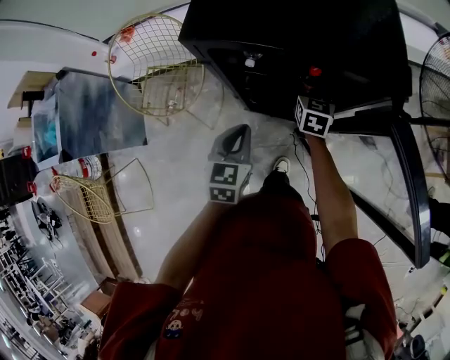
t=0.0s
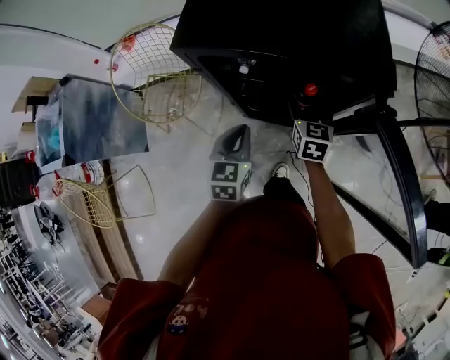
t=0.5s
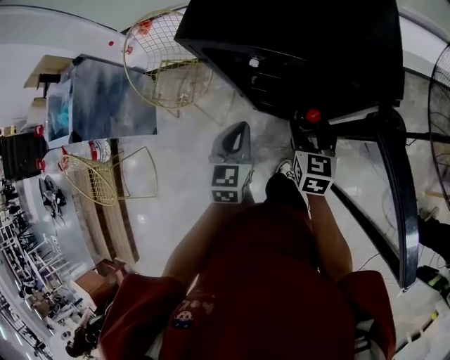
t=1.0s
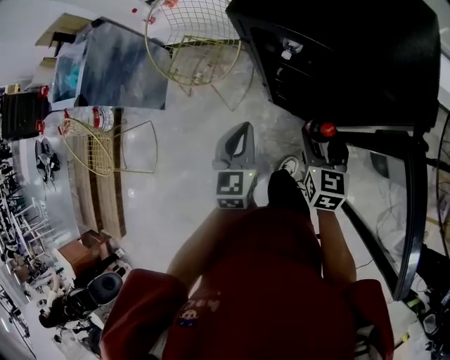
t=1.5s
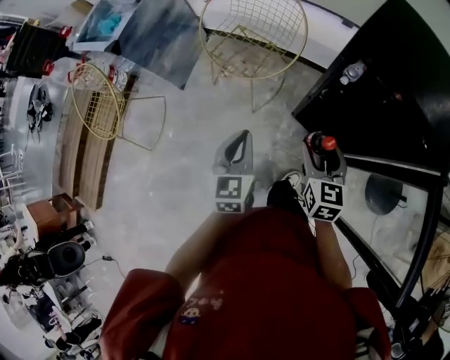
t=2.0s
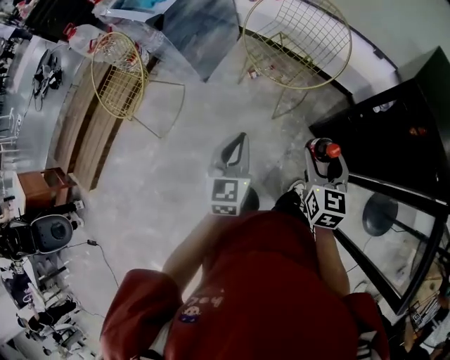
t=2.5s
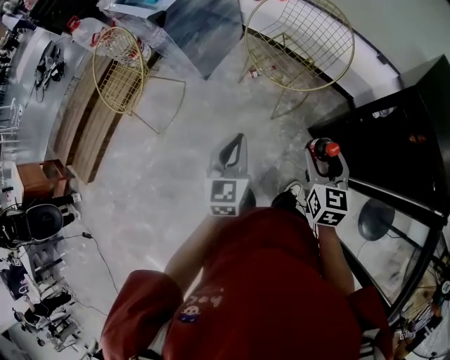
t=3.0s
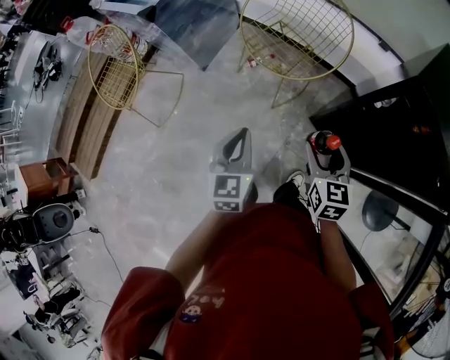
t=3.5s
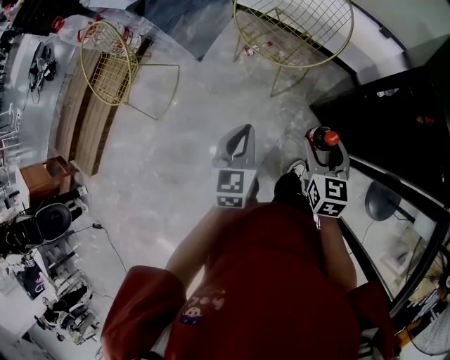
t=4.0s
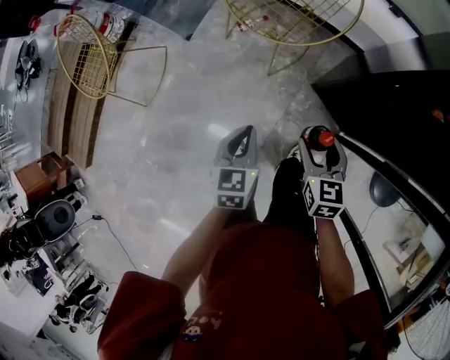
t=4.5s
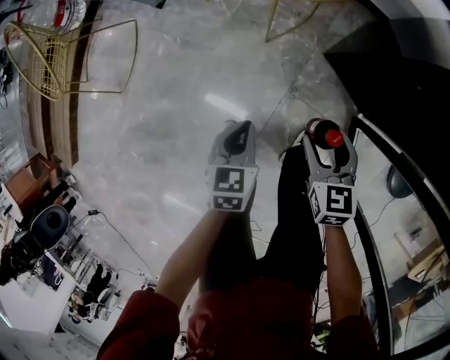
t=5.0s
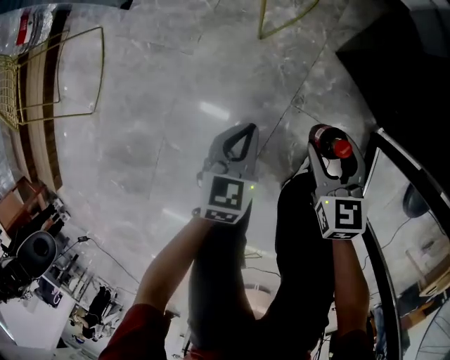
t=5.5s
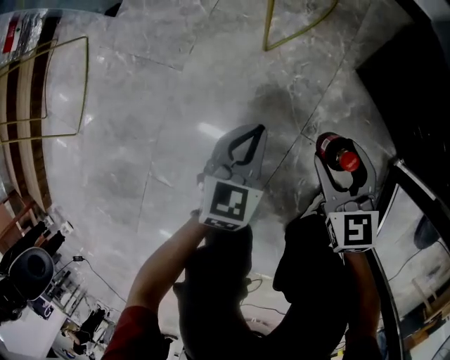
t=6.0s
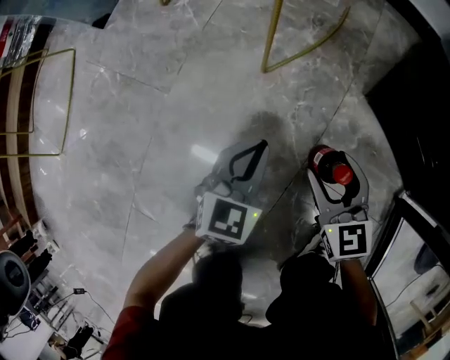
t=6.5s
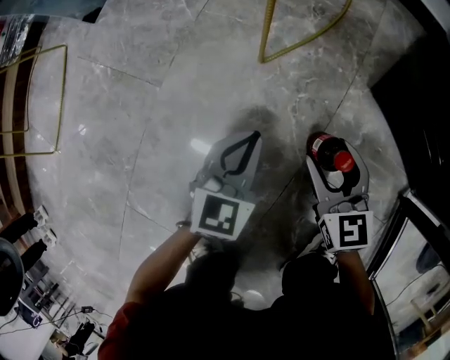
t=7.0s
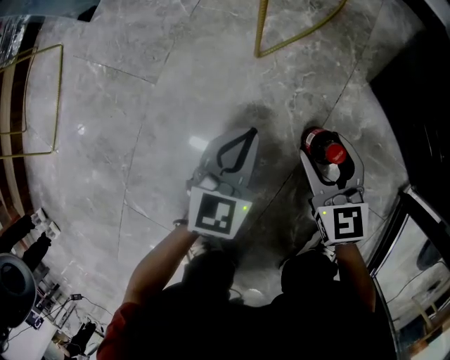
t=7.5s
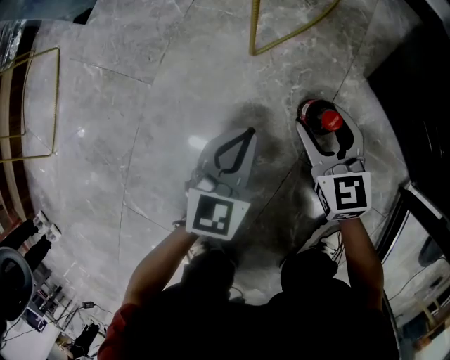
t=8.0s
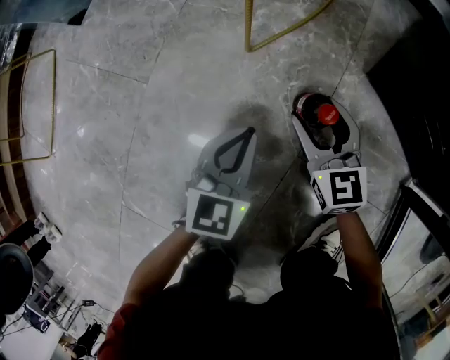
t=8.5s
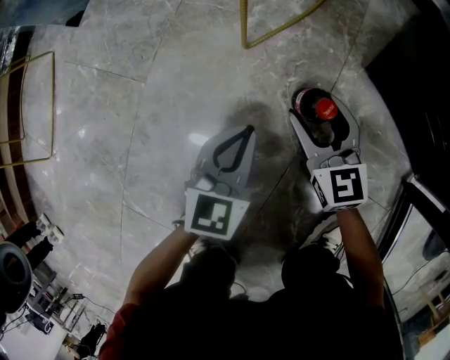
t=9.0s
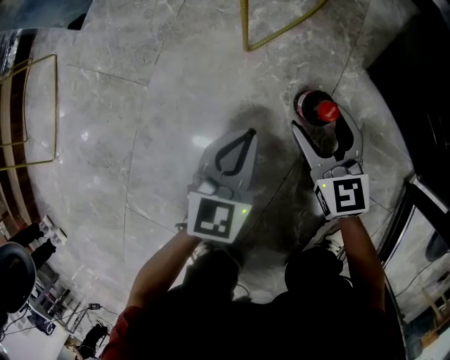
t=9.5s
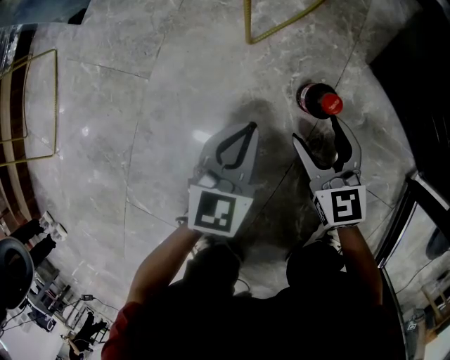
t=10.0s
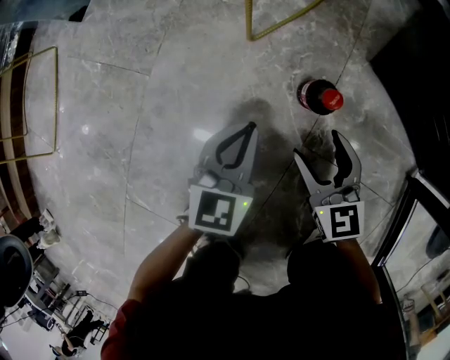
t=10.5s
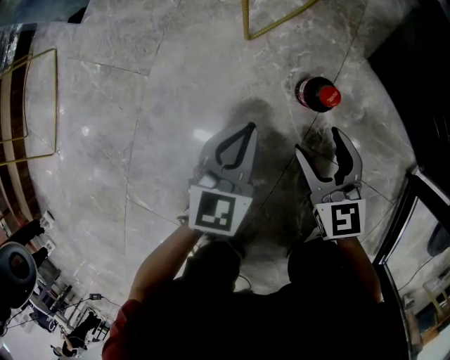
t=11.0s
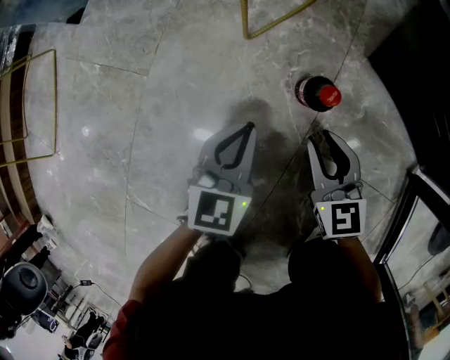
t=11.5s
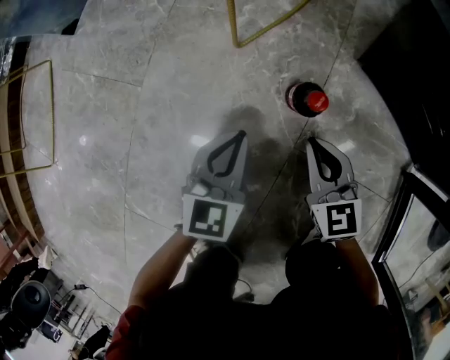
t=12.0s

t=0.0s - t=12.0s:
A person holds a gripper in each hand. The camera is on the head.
t=0.0s - t=2.0s: The left gripper ends up some 25 cm from where it was, and changes its angle by roughly 40 degrees. The right gripper ends up roughly 30 cm from where it was, and rotates about 30 degrees.
t=2.0s - t=4.0s: Both grippers move to the left, approximately 10 cm.
t=4.0s - t=6.0s: Both grippers travel together downward, roughly 60 cm. The left gripper turns by about 20 degrees.
t=6.0s - t=8.0s: The left gripper is displaced downward by roughly 10 cm, while the right gripper travels downward and forward by about 15 cm.
t=8.0s - t=10.0s: The right gripper travels backward by some 5 cm.
t=10.0s - t=12.0s: The right gripper closes its fingers.

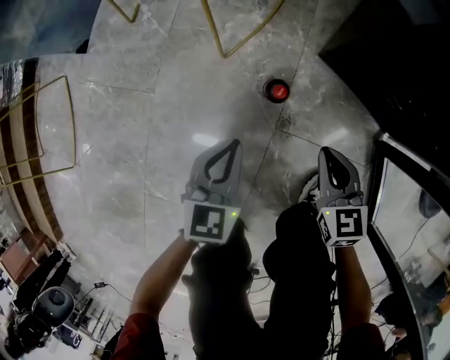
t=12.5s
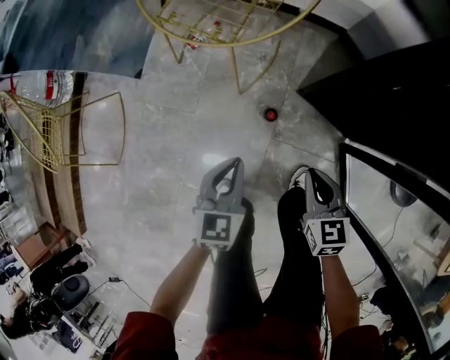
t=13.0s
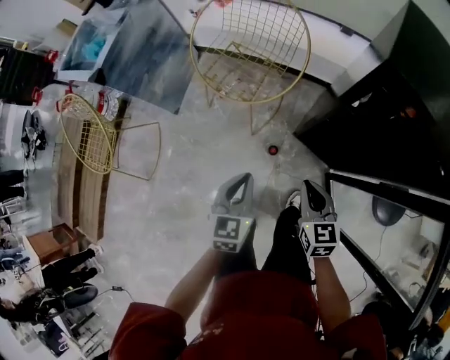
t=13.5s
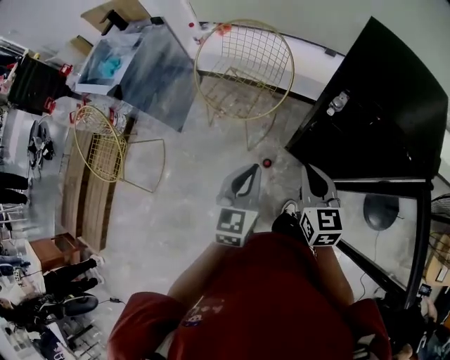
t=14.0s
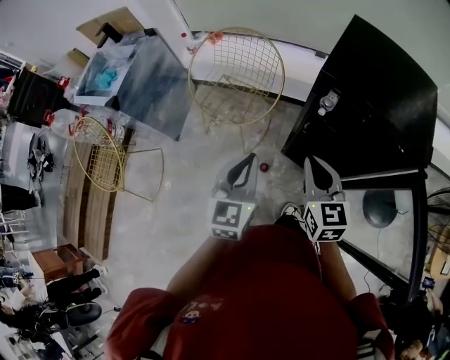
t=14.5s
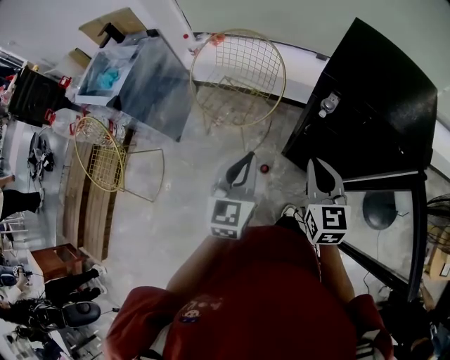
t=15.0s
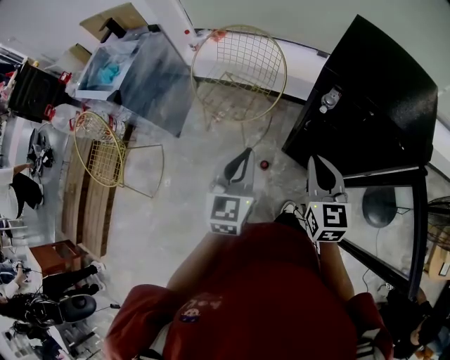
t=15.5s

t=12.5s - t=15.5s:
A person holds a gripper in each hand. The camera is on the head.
t=12.5s - t=14.0s: The two grippers go roughly 70 cm upward.
t=14.0s - t=15.5s: The right gripper shifts by about 5 cm.

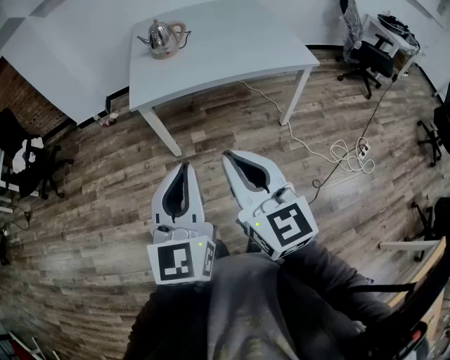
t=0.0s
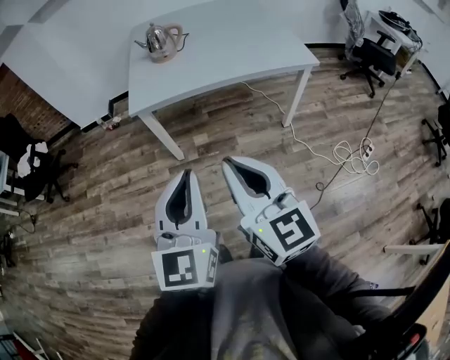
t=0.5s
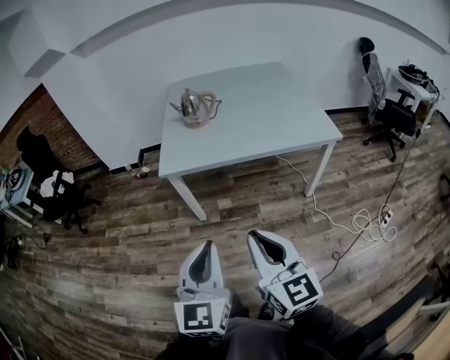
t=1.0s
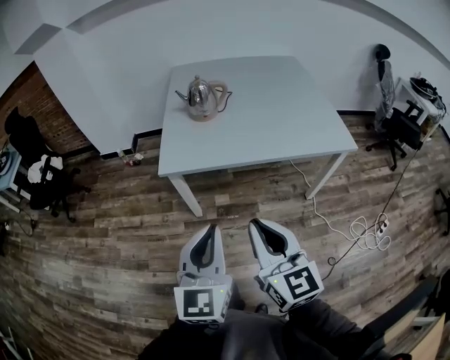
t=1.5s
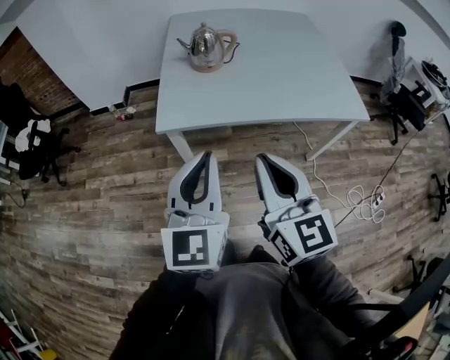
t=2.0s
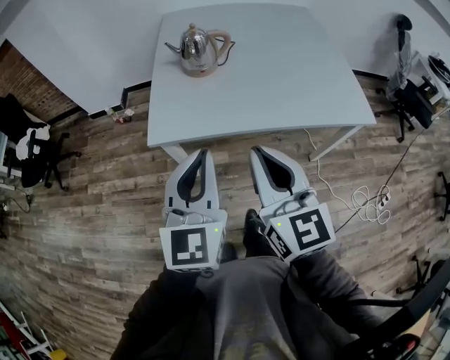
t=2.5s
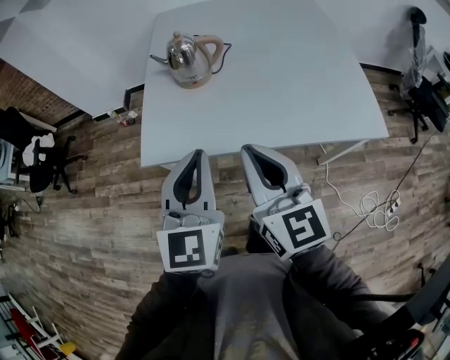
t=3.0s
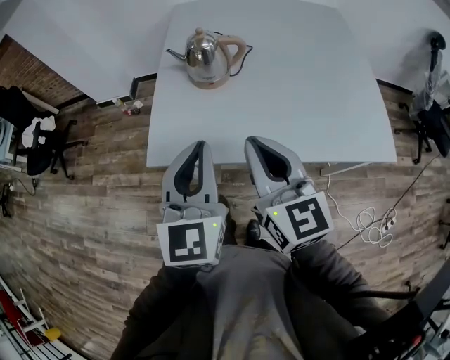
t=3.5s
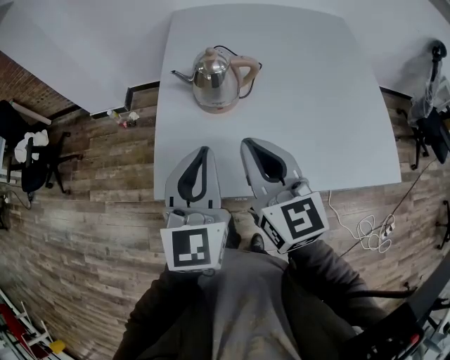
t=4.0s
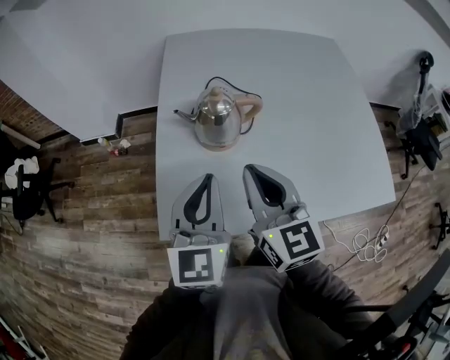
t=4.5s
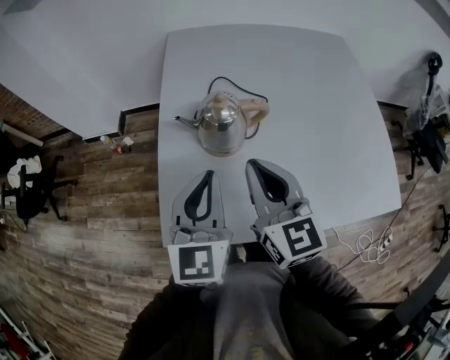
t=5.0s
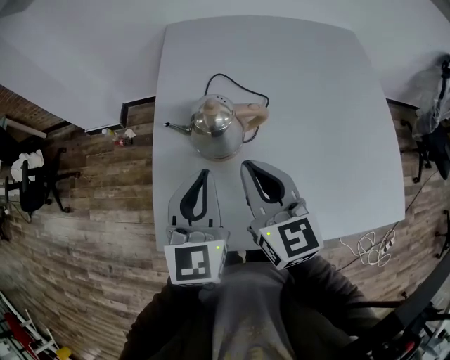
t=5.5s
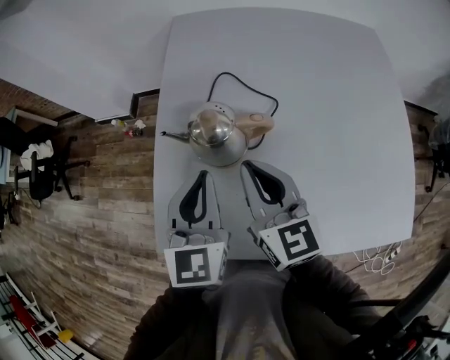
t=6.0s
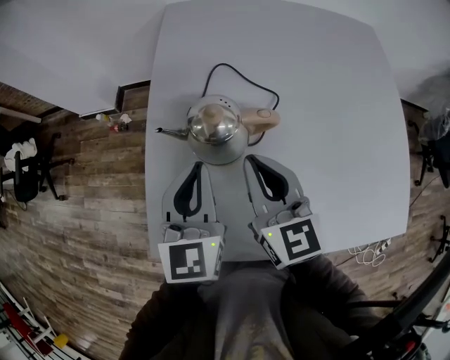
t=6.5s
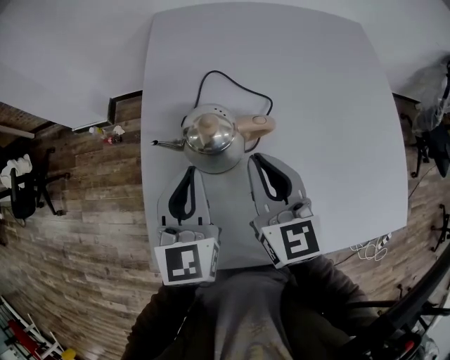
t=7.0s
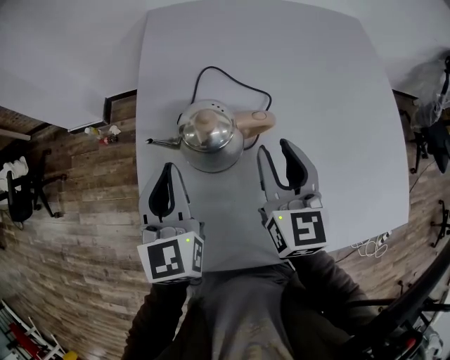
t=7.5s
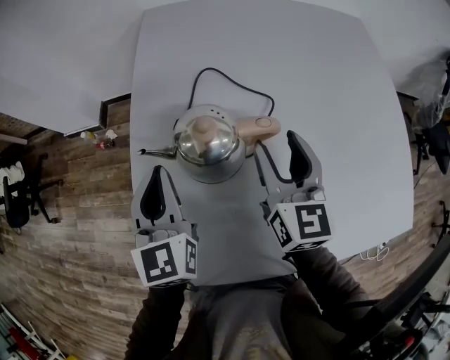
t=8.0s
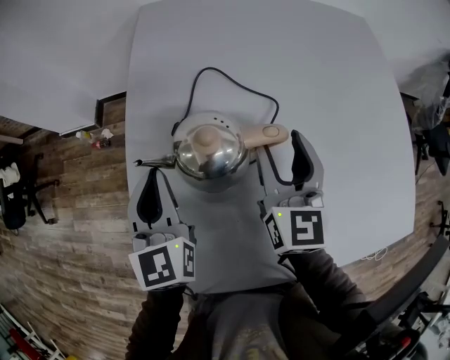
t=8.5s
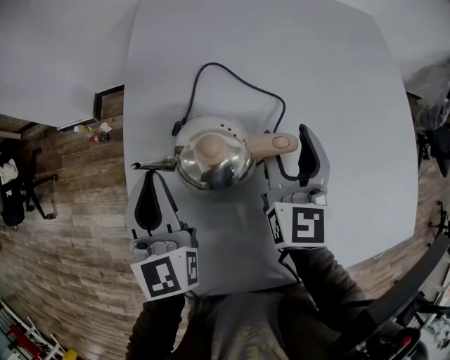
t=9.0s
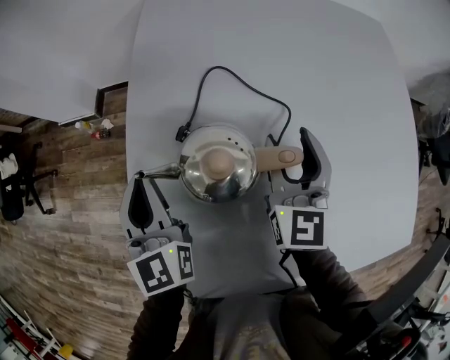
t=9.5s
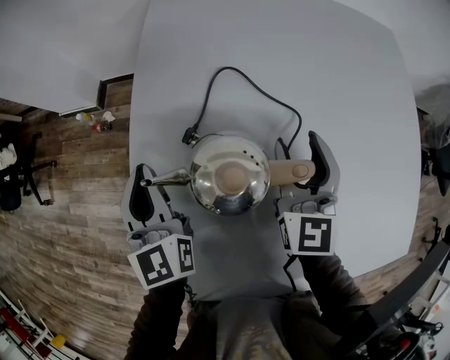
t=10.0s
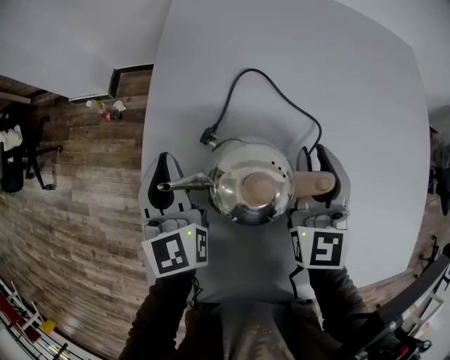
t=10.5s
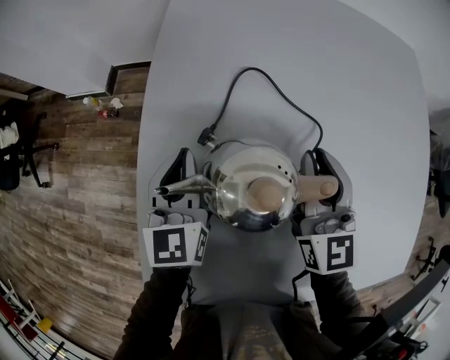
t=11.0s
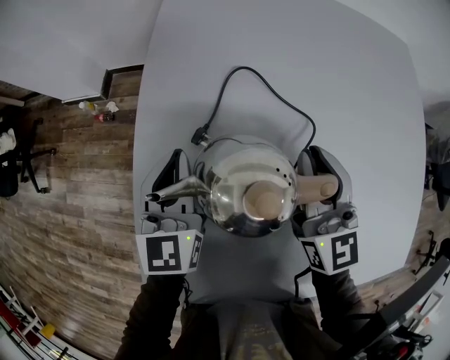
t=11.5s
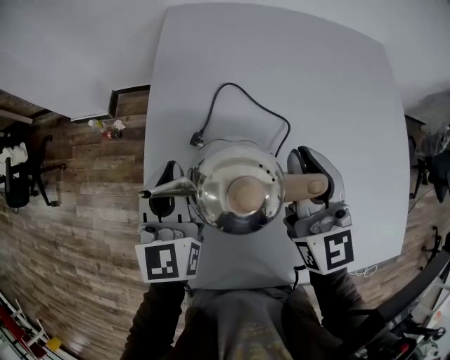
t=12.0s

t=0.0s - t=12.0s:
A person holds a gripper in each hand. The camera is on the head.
t=0.0s - t=2.0s: The grippers both shift forward by approximately 25 cm.
t=2.0s - t=4.0s: Both grippers move forward, some 35 cm.
t=4.0s - t=6.0s: Both grippers travel together forward, approximately 20 cm.
t=6.0s - t=8.0s: The right gripper moves forward, downward and to the right, about 10 cm, rotates about 20 degrees, and opens its fingers. Meanwhile the left gripper goes some 15 cm to the left, forward and downward.
t=8.0s - t=10.0s: The right gripper shifts approximately 10 cm forward, while the left gripper moves forward and to the left, approximately 10 cm.
t=10.0s - t=12.0s: The right gripper moves upward, some 10 cm, and closes. Meanwhile the left gripper goes roughly 5 cm upward.
